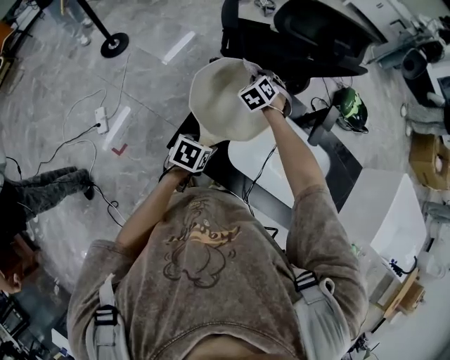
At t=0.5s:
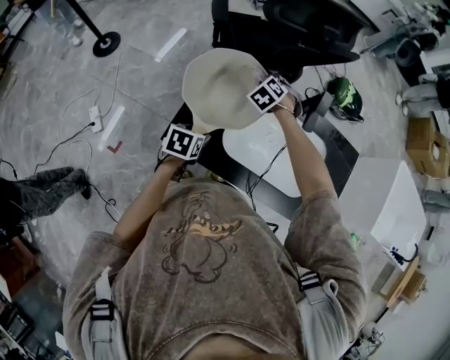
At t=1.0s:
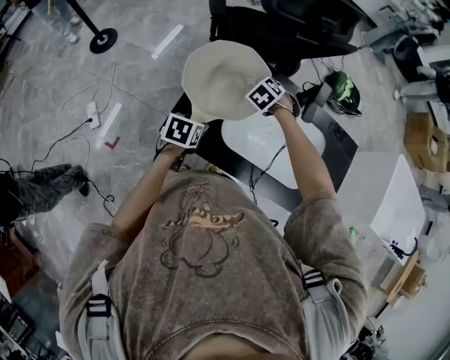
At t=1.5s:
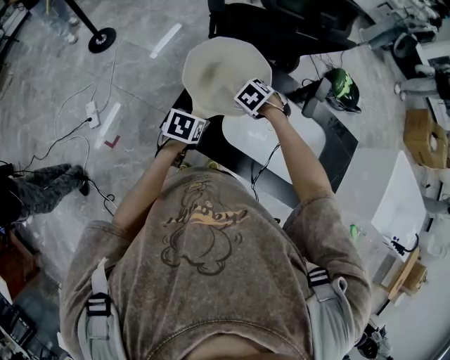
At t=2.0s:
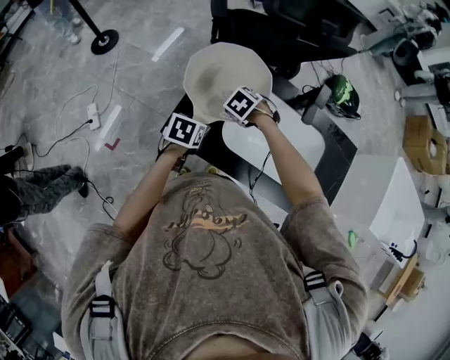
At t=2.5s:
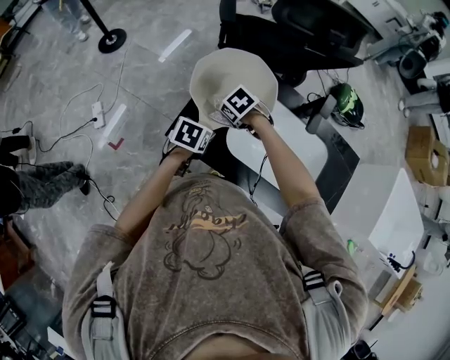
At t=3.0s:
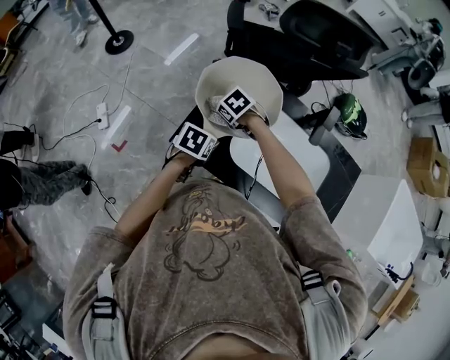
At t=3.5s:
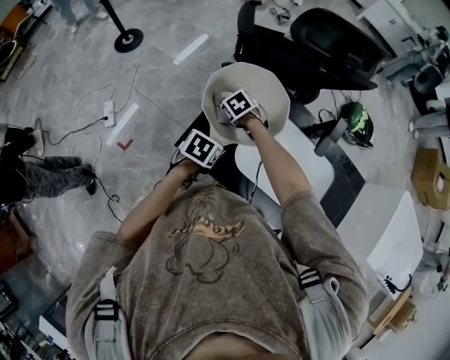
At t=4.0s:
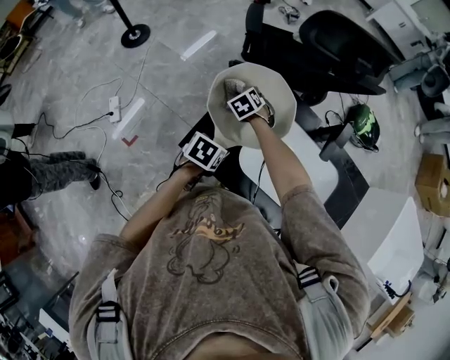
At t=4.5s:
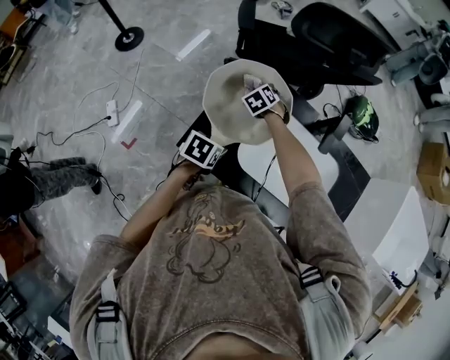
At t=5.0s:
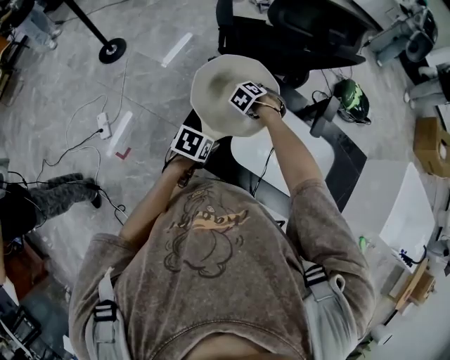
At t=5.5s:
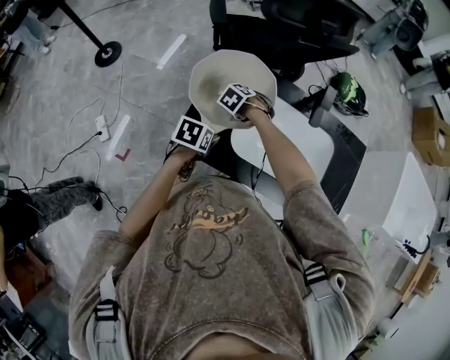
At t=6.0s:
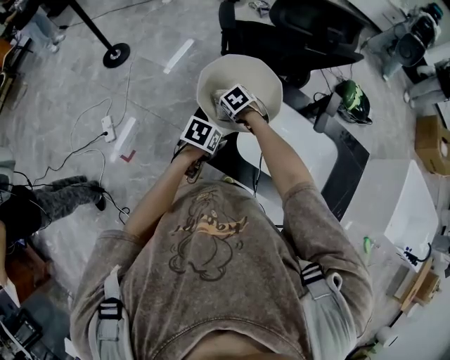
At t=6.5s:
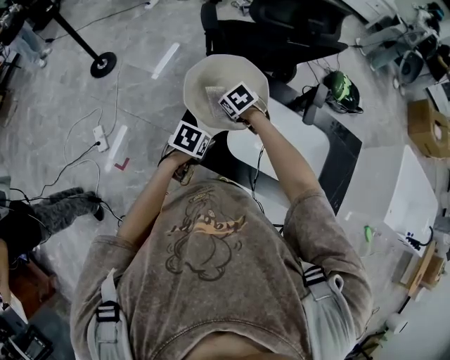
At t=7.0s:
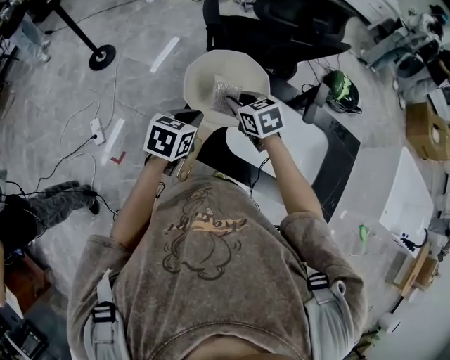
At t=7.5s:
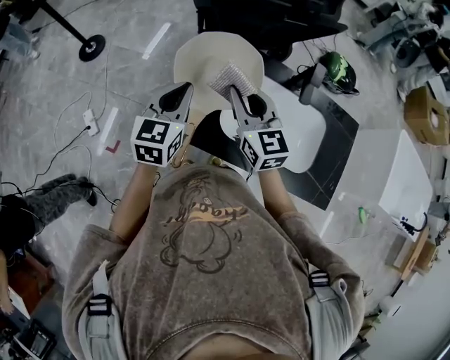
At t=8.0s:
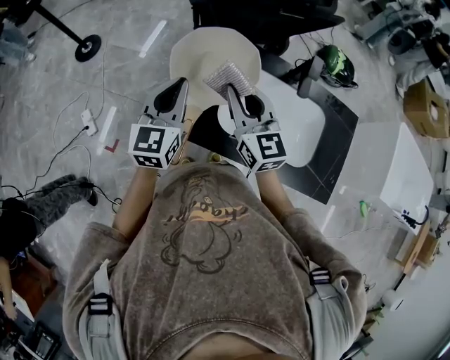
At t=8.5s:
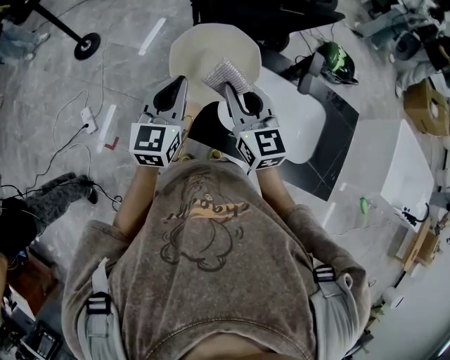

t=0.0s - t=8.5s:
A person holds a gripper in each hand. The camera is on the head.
t=0.0s - t=2.0s: The right gripper changes place by roughly 20 cm, and angles its fingers downward, by approximately 30 degrees.
t=2.0s - t=4.0s: The right gripper changes place by some 15 cm, and swivels approximately 20 degrees.
t=4.0s - t=6.5s: The right gripper moves roughly 10 cm.
t=6.5s - t=8.5s: The right gripper moves upward and backward, roughly 25 cm, and points its fingers about 60 degrees further upward. The left gripper heads upward, covering about 20 cm, points its fingers some 50 degrees further upward, and closes its fingers.

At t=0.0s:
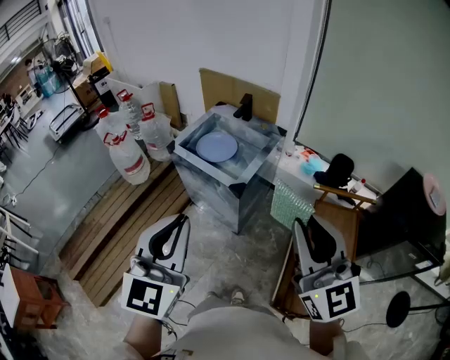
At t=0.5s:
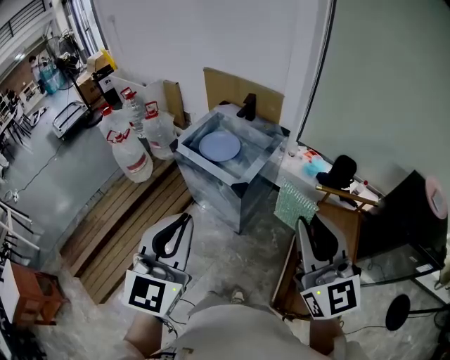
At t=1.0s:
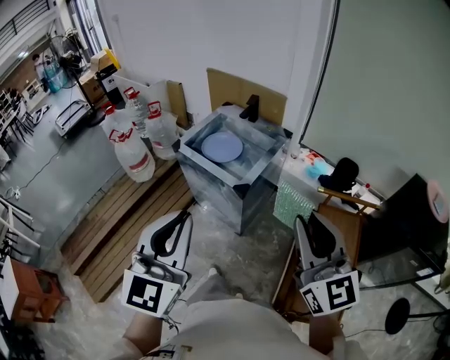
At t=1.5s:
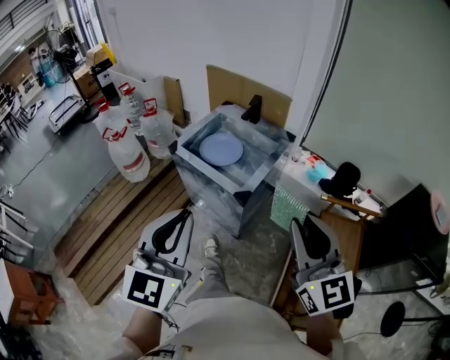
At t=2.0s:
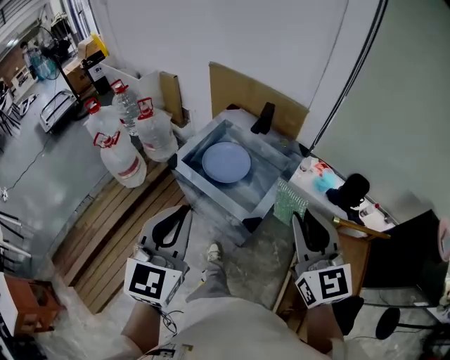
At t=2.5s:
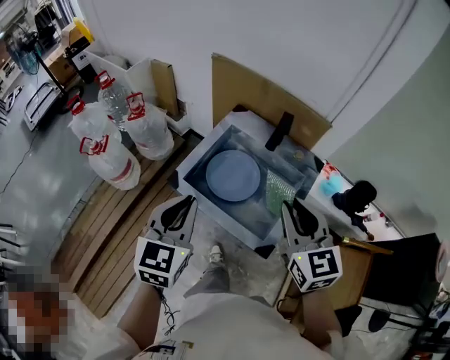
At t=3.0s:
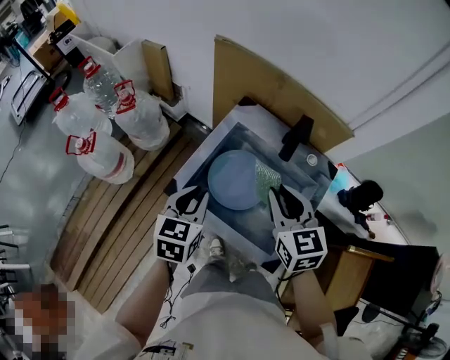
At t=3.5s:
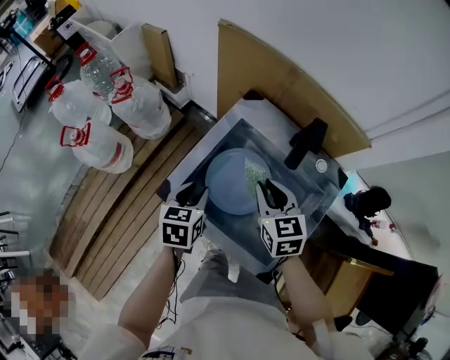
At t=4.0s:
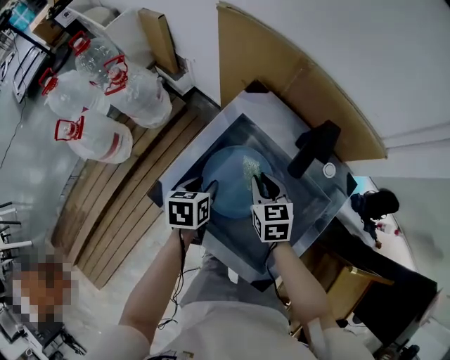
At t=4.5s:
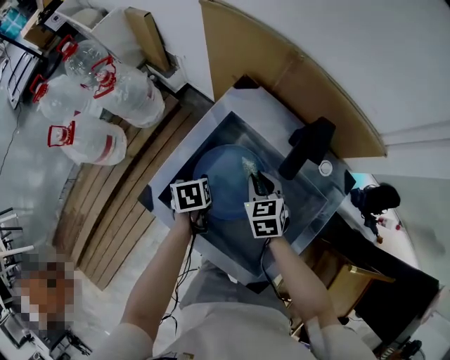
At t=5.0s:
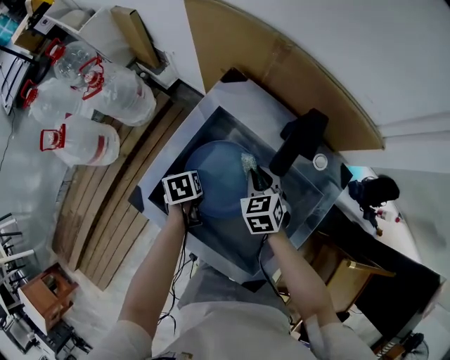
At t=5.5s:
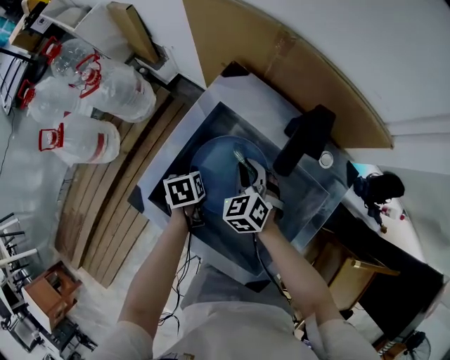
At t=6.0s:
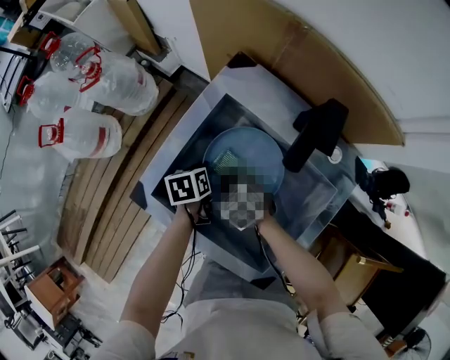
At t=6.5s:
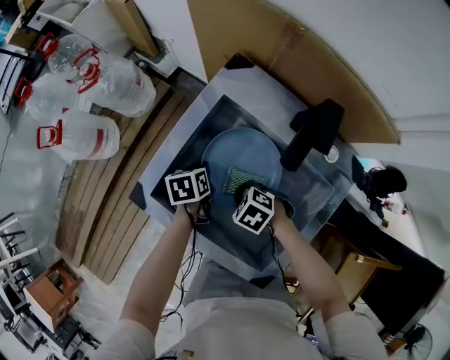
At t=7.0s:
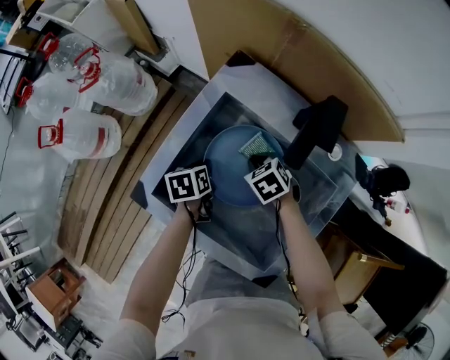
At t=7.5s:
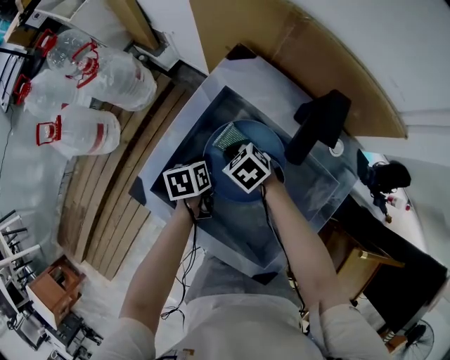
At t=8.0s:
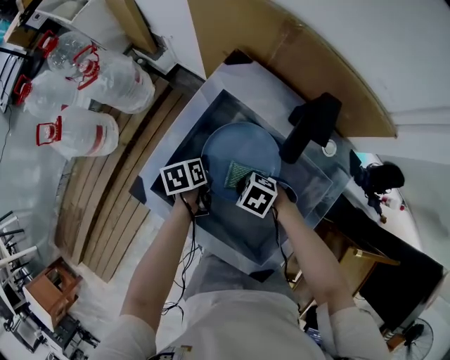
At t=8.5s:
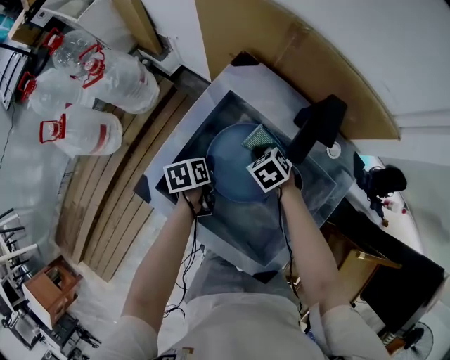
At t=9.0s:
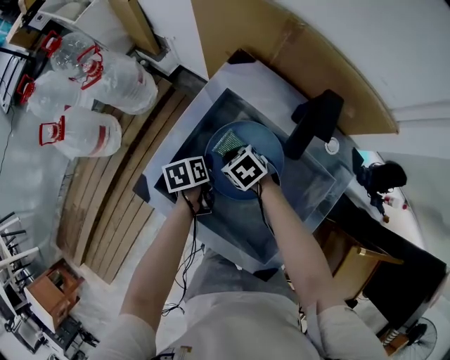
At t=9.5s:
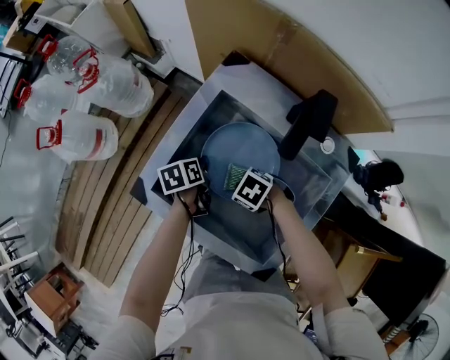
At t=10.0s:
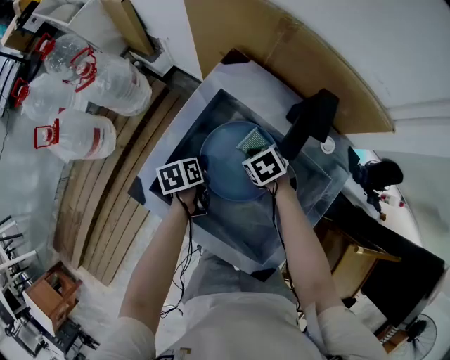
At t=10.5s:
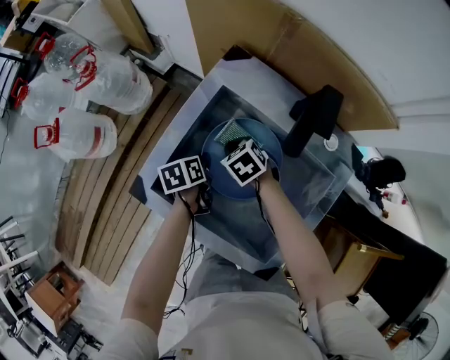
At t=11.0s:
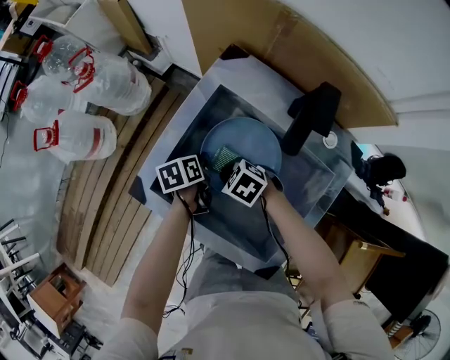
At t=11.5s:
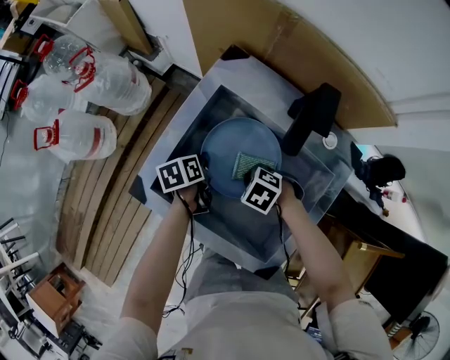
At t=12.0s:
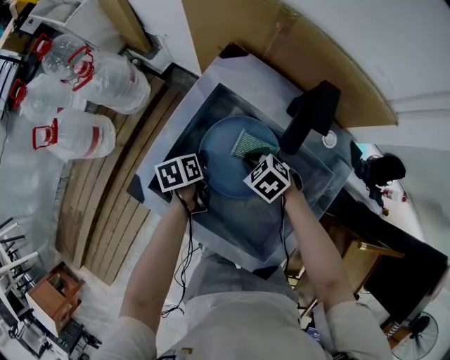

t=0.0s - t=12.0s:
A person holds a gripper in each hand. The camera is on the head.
t=0.0s - t=2.0s: The grippers both shift forward by some 25 cm.
t=2.0s - t=4.0s: Both grippers are carried forward, about 40 cm. Both grippers travel together downward, some 40 cm. The left gripper points its fingers about 40 degrees further downward, and opens, while the right gripper tips its fingers downward by approximately 40 degrees.
t=4.0s - t=6.0s: The left gripper moves downward, roughly 10 cm, and closes. The right gripper goes approximately 15 cm downward and to the left, and turns by approximately 40 degrees.
t=6.0s - t=8.0s: The right gripper shifts by roughly 5 cm, and turns by some 30 degrees.
t=8.0s - t=10.0s: The right gripper changes place by approximately 10 cm, and changes its angle by roughly 30 degrees.
t=10.0s - t=12.0s: The right gripper turns by some 20 degrees.

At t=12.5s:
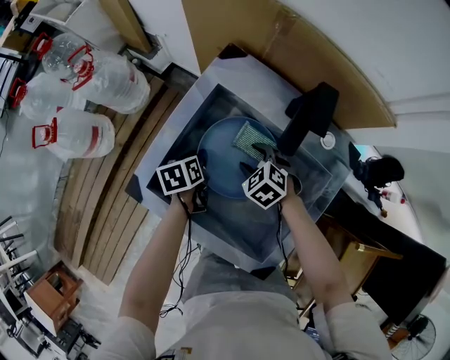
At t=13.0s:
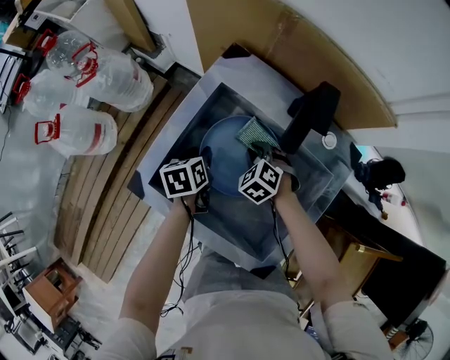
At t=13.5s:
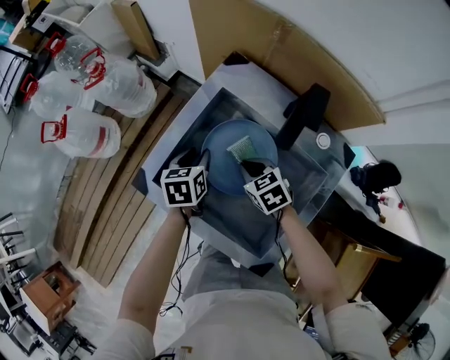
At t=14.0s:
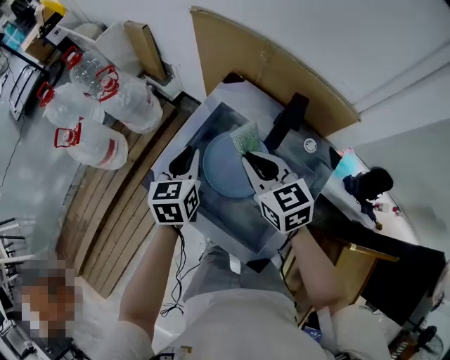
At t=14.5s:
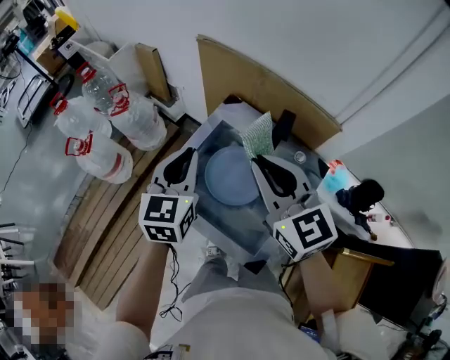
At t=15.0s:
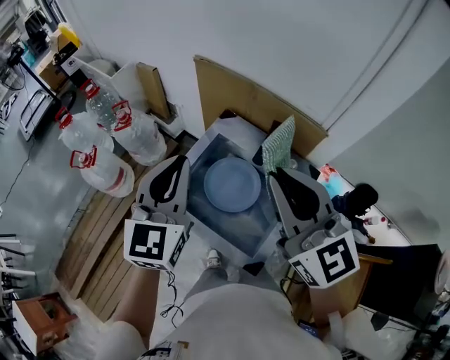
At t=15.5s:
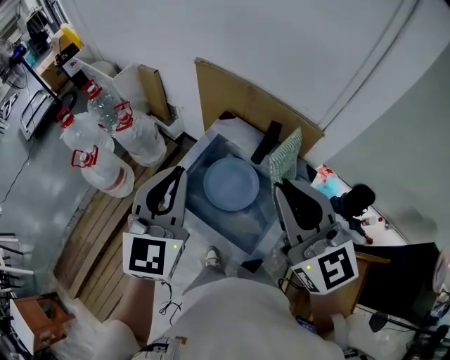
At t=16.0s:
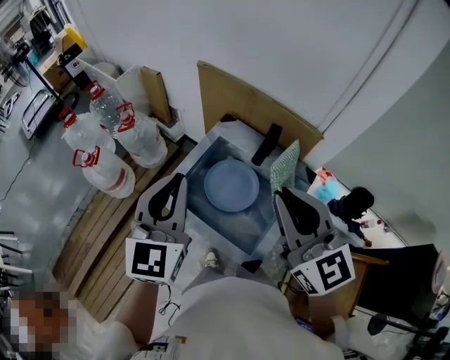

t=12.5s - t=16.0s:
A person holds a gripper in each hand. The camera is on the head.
t=12.5s - t=14.5s: Both grippers move upward, about 40 cm. The left gripper angles its fingers upward, by approximately 40 degrees, and closes its fingers; the right gripper angles its fingers upward, by some 50 degrees, and closes up.
t=14.5s - t=16.0s: The left gripper shifts approximately 15 cm upward and backward; the right gripper travels backward and upward by some 15 cm.

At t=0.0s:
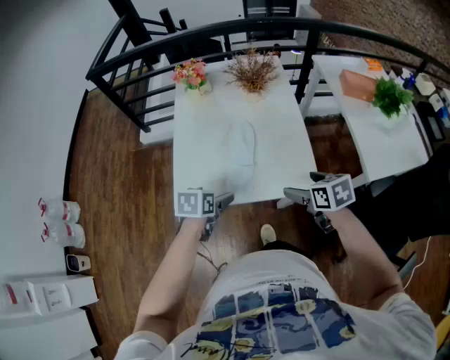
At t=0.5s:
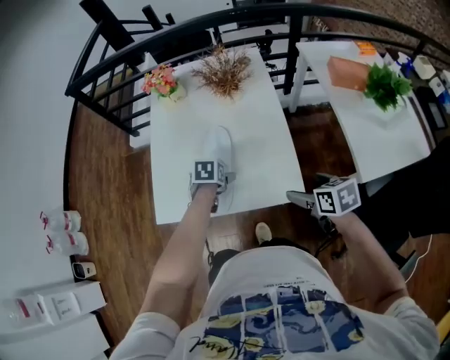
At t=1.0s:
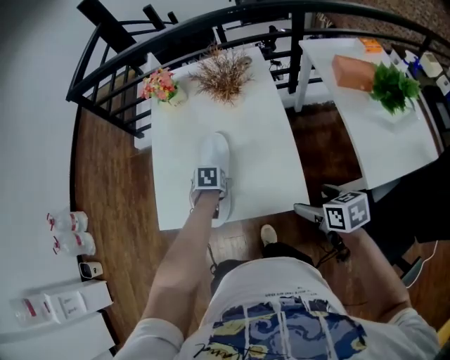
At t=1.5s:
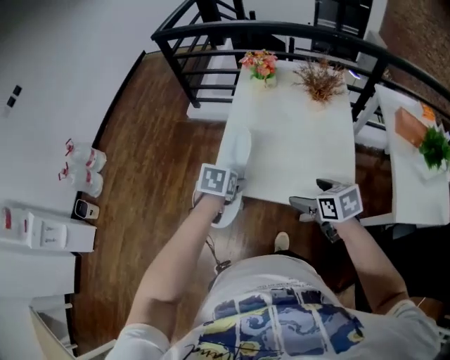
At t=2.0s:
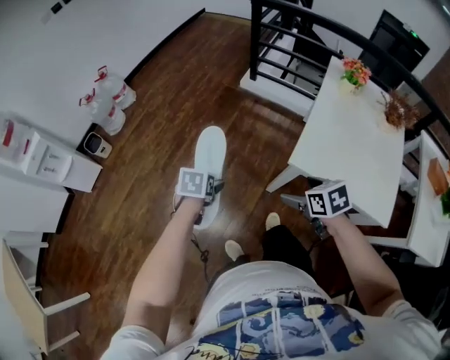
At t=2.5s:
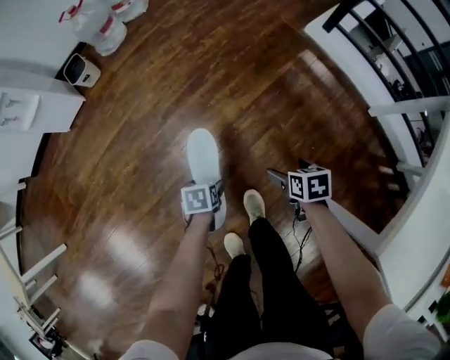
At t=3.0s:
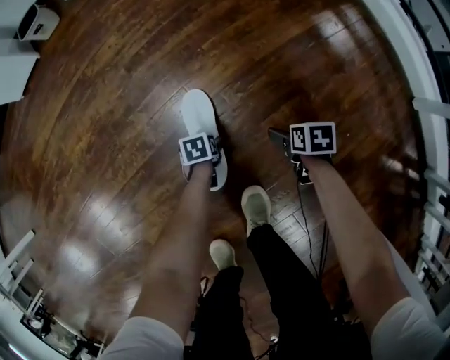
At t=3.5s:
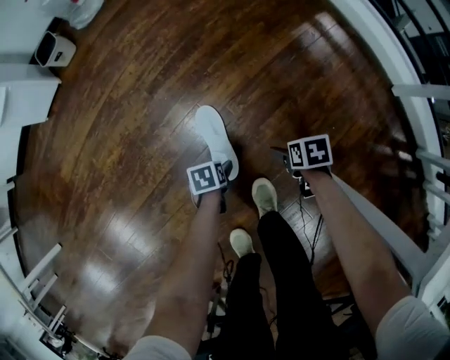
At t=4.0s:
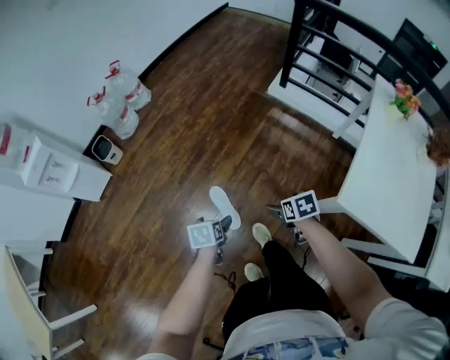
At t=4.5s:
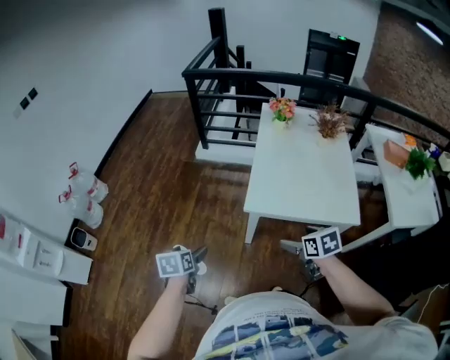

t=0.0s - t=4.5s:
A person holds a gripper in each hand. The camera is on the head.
t=0.0s - t=2.0s: The pair of grippers is taken some 40 cm. The left gripper changes its angle by some 40 degrees, while the right gripper swivels about 40 degrees.
t=2.0s - t=4.5s: The right gripper reaches some 90 cm downward, then returns, and swivels some 30 degrees. Meanwhile the left gripper travels downward and back again, some 90 cm each way.
